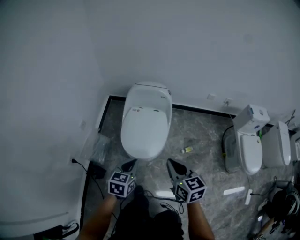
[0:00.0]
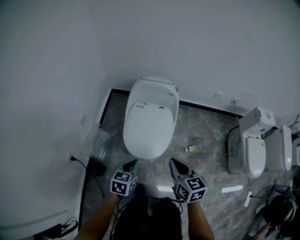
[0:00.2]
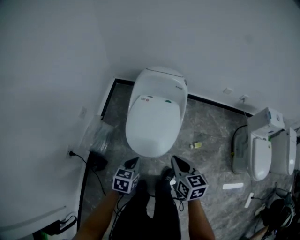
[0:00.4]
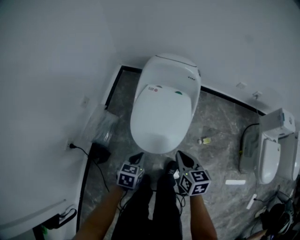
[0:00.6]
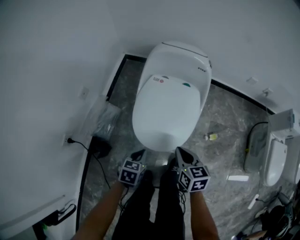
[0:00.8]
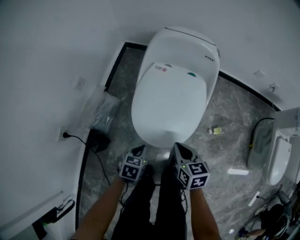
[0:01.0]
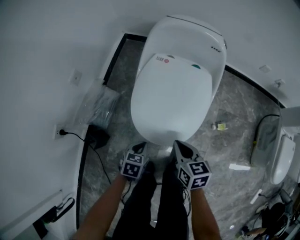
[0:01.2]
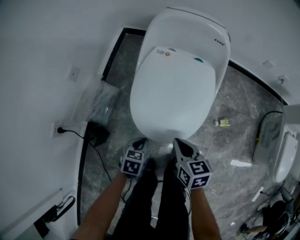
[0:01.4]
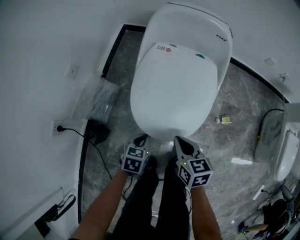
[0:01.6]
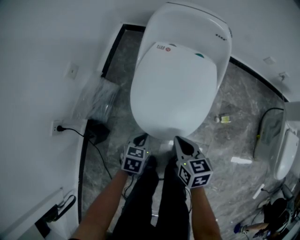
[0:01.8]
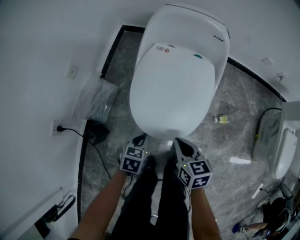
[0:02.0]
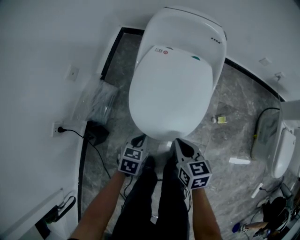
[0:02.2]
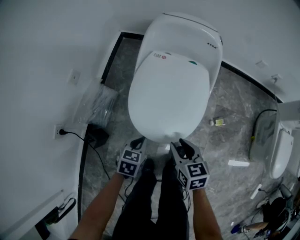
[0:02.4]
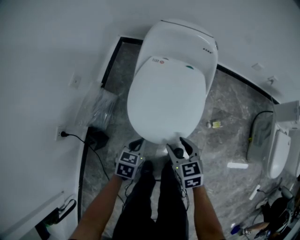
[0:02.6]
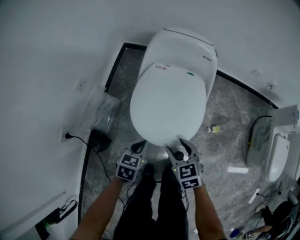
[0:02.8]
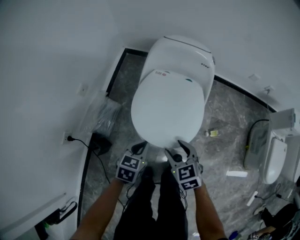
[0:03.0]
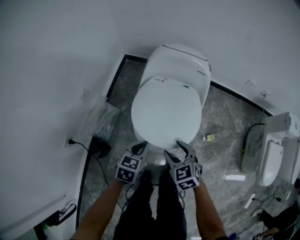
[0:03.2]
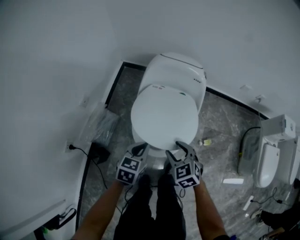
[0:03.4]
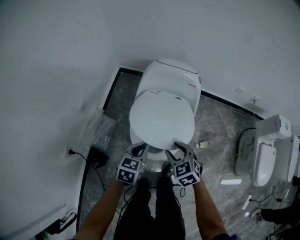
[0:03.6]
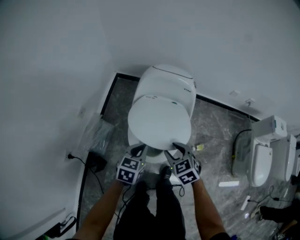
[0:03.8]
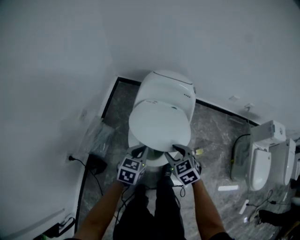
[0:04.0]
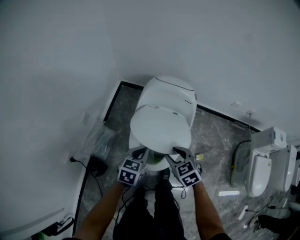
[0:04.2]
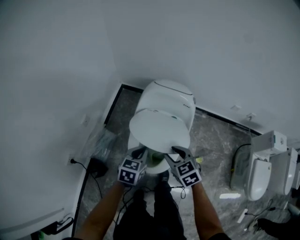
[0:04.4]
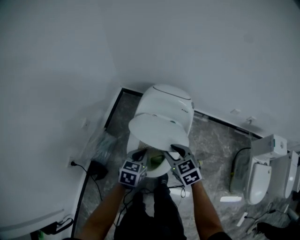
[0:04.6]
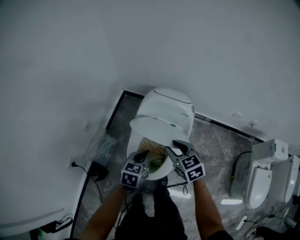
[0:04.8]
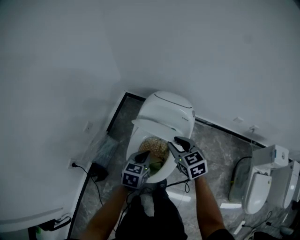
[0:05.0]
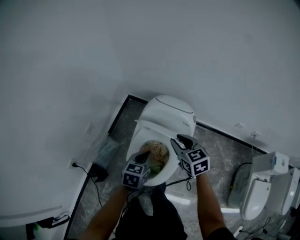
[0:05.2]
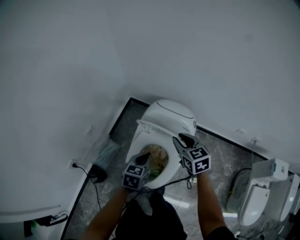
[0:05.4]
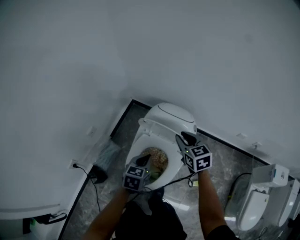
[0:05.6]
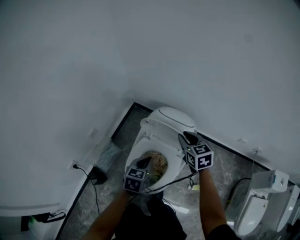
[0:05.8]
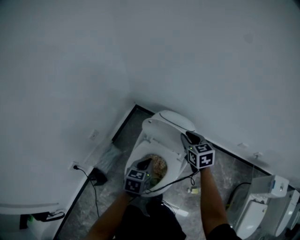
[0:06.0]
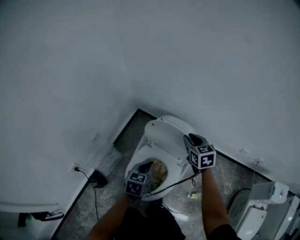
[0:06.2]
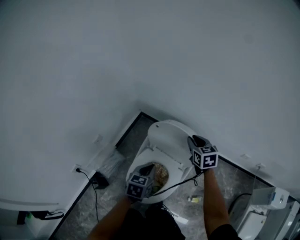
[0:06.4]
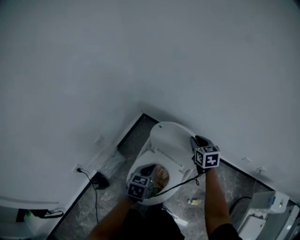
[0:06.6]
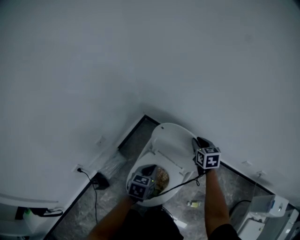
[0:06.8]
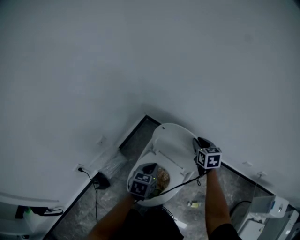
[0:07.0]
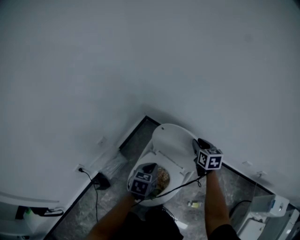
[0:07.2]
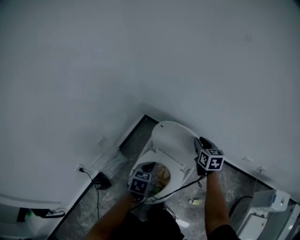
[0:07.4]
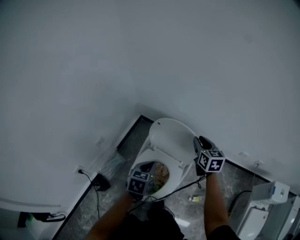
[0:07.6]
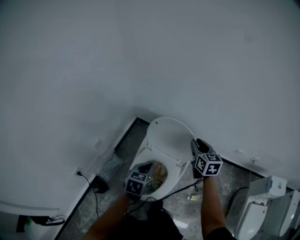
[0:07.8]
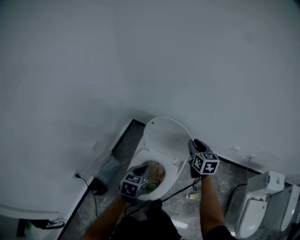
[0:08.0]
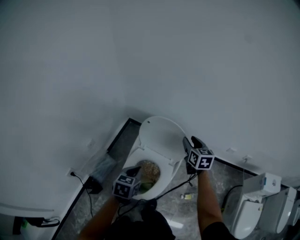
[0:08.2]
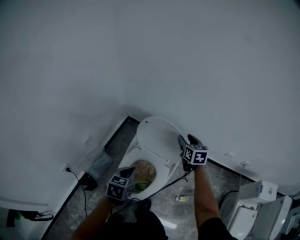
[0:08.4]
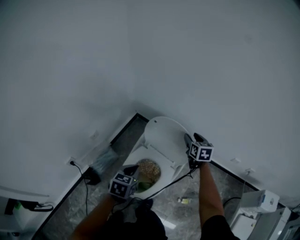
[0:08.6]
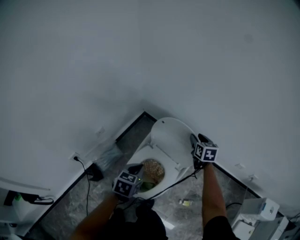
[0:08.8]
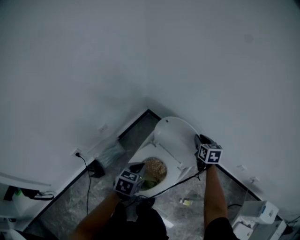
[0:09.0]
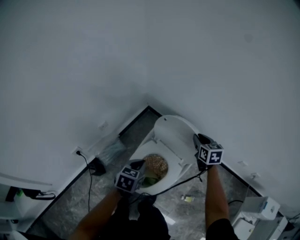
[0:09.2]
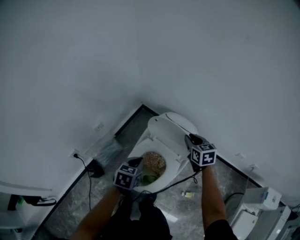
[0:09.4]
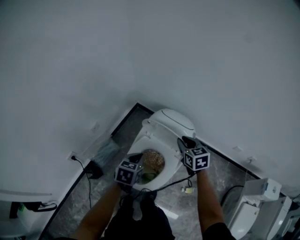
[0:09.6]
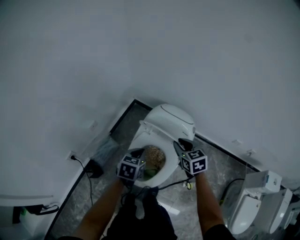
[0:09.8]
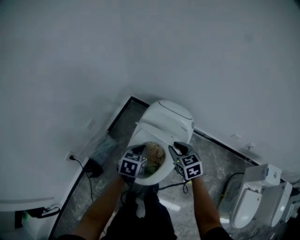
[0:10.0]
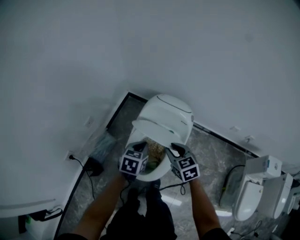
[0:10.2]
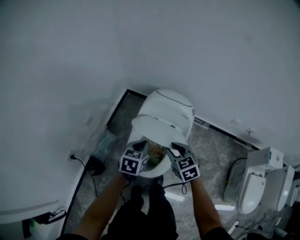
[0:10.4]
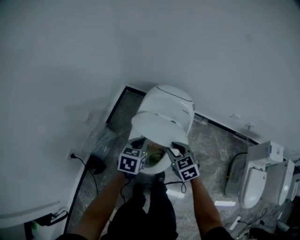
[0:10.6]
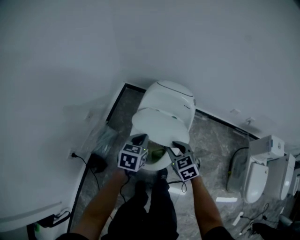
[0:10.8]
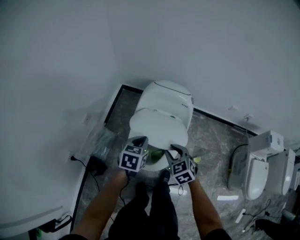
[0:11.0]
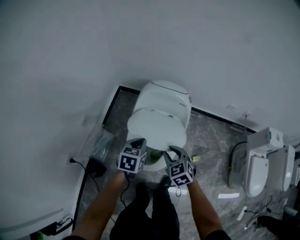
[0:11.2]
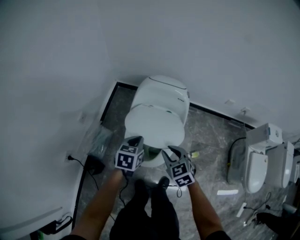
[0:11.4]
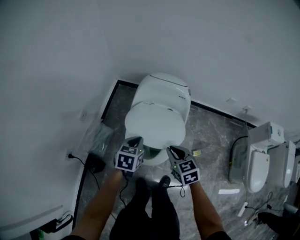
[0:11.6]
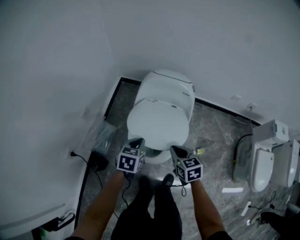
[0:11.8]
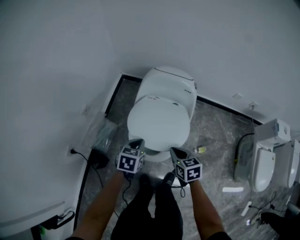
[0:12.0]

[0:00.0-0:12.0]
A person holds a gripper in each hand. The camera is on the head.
0:00.0 to 0:01.6: The grippers both shift downward by approximately 35 cm. The right gripper rotates some 20 degrees. The left gripper rotates roughly 20 degrees.
0:01.6 to 0:03.0: The right gripper is displaced upward by some 10 cm, swivels roughly 30 degrees, and opens. Meanwhile the left gripper is displaced upward by approximately 15 cm.
0:03.0 to 0:04.4: Both grippers travel together upward and forward, about 15 cm.
0:04.4 to 0:06.0: The left gripper moves forward and to the right, about 10 cm. The right gripper travels forward and to the right by about 25 cm.
0:06.0 to 0:07.6: The right gripper shifts some 5 cm to the right.
0:07.6 to 0:09.0: The right gripper changes place by roughly 5 cm, and opens, then closes once more. The left gripper changes place by about 5 cm.
0:09.0 to 0:10.4: The right gripper moves backward and to the left, approximately 30 cm.
0:10.4 to 0:12.0: The right gripper goes approximately 15 cm backward and downward, rotates approximately 20 degrees, and closes up; the left gripper is displaced downward and backward by some 10 cm.

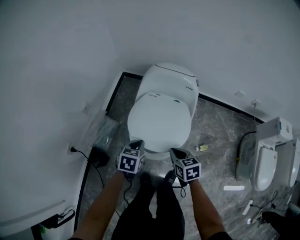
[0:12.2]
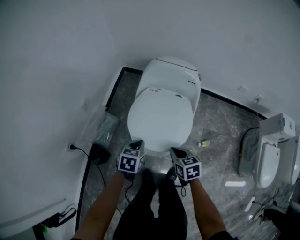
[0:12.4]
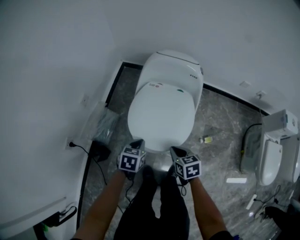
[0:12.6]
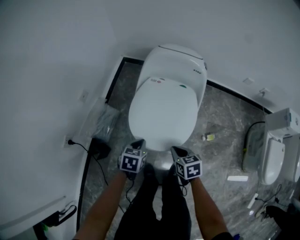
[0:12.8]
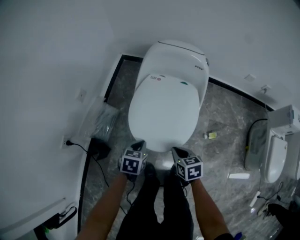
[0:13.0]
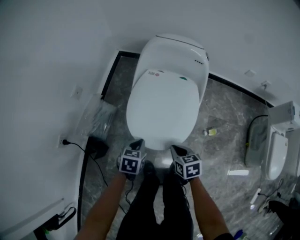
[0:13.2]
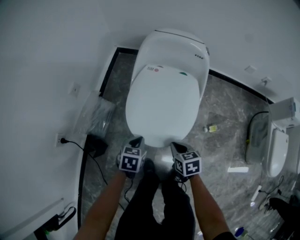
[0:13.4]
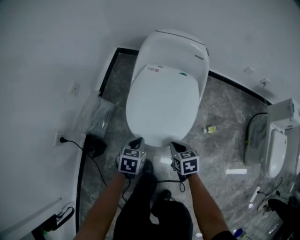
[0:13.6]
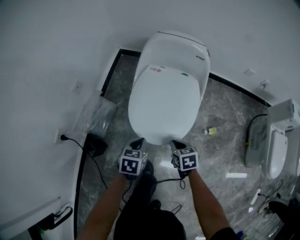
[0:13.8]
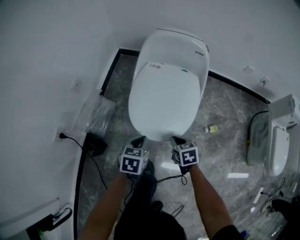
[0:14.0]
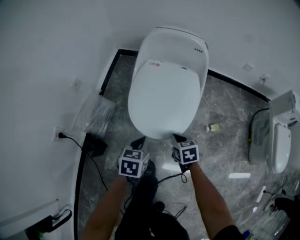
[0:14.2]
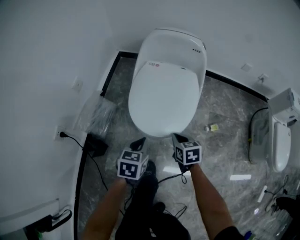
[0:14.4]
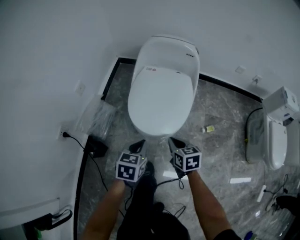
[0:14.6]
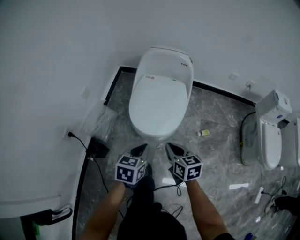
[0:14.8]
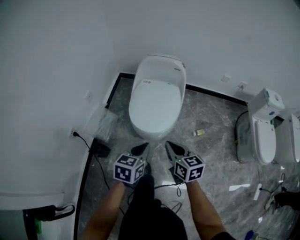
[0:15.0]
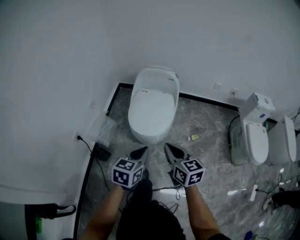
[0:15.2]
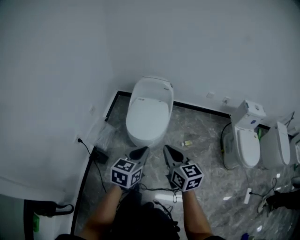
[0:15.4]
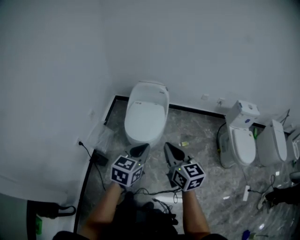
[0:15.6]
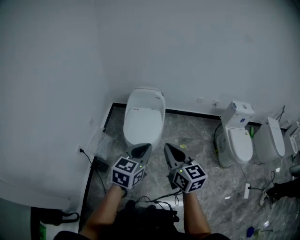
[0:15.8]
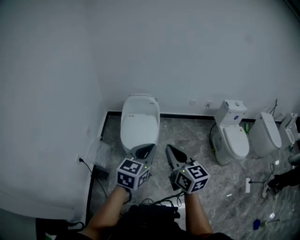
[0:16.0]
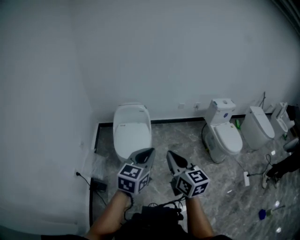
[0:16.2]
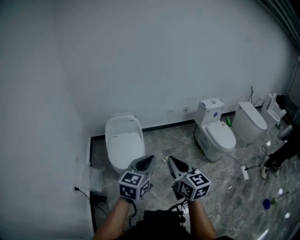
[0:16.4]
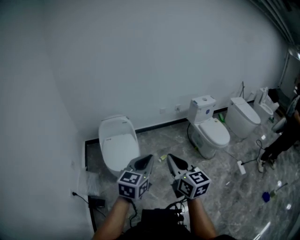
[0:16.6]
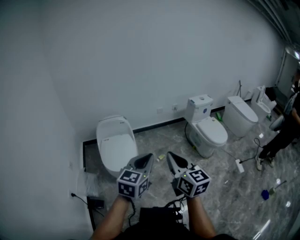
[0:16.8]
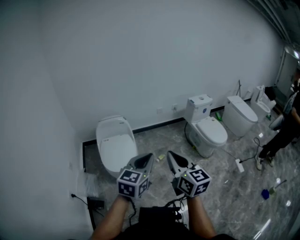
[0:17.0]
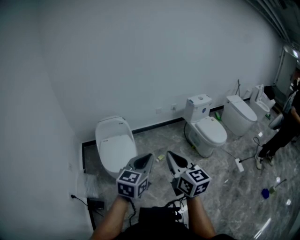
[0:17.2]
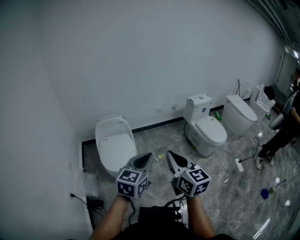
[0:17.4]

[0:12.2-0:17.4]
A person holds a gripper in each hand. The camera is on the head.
0:12.2 to 0:14.0: The left gripper heads downward and backward, covering roughly 15 cm; the right gripper moves downward, approximately 15 cm.
0:14.0 to 0:15.6: The two grippers go approximately 50 cm upward and backward. The left gripper rotates some 30 degrees. The right gripper tilts its fingers roughly 50 degrees upward.
0:15.6 to 0:17.4: The right gripper is displaced to the right and upward by approximately 15 cm, and turns by approximately 30 degrees, while the left gripper heads upward and to the right, covering roughly 15 cm, and rotates some 30 degrees.

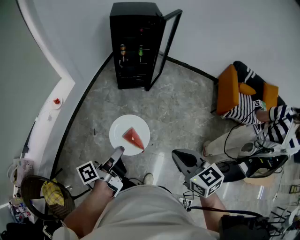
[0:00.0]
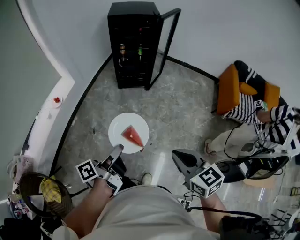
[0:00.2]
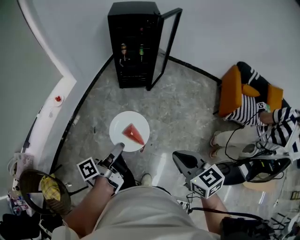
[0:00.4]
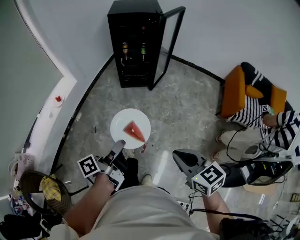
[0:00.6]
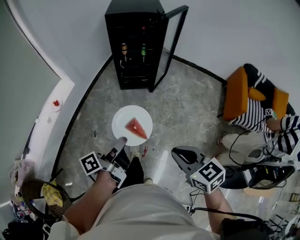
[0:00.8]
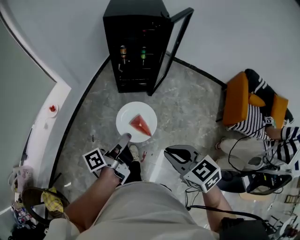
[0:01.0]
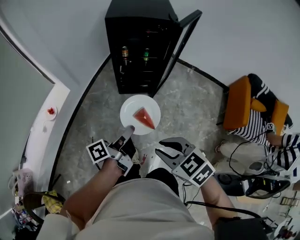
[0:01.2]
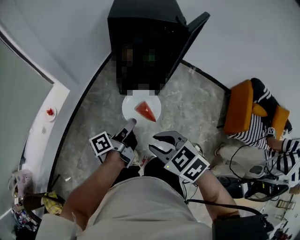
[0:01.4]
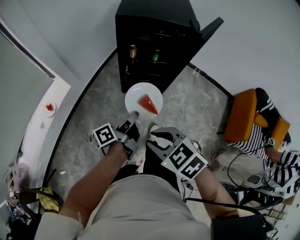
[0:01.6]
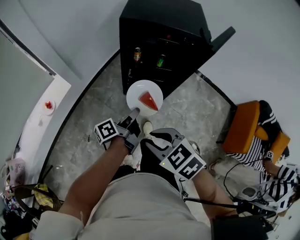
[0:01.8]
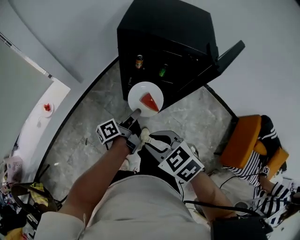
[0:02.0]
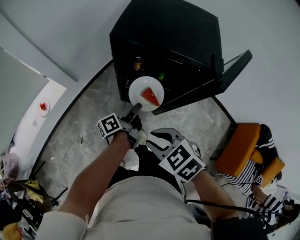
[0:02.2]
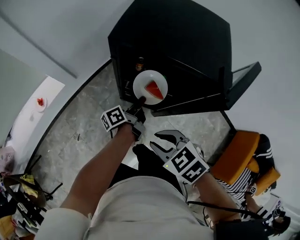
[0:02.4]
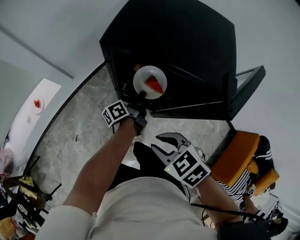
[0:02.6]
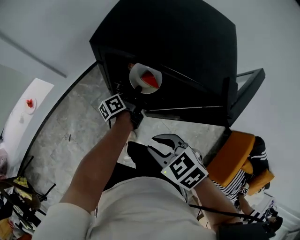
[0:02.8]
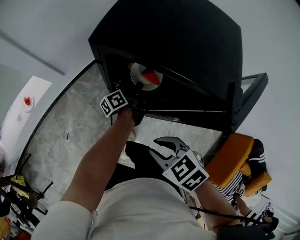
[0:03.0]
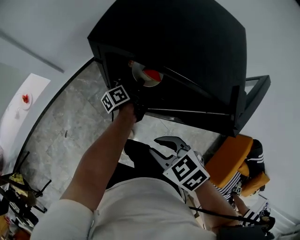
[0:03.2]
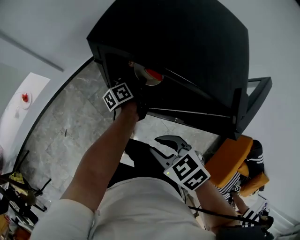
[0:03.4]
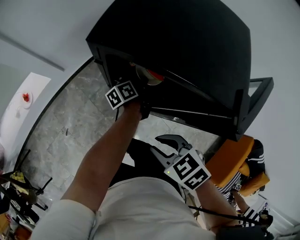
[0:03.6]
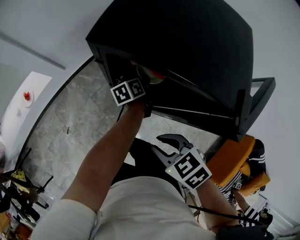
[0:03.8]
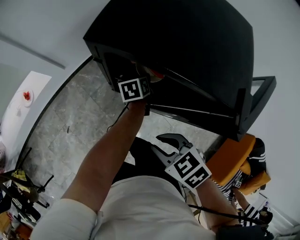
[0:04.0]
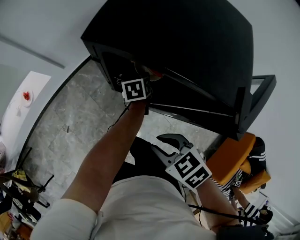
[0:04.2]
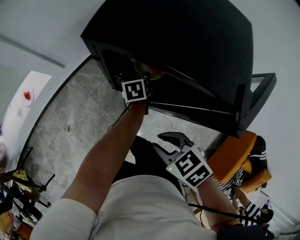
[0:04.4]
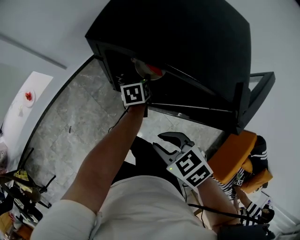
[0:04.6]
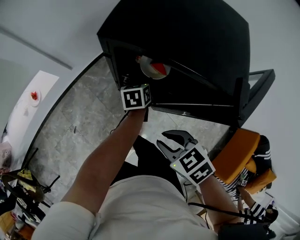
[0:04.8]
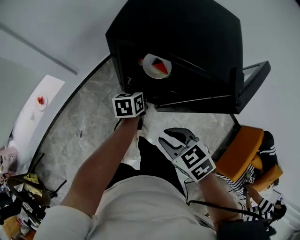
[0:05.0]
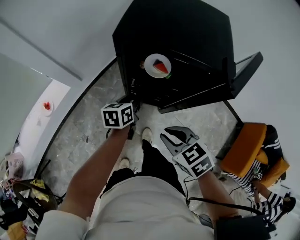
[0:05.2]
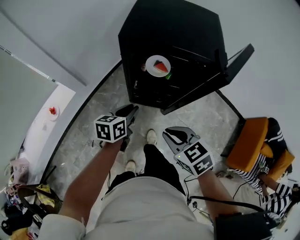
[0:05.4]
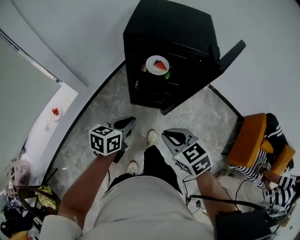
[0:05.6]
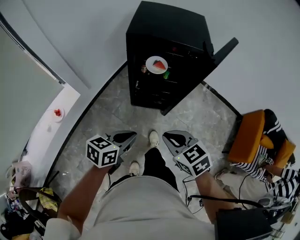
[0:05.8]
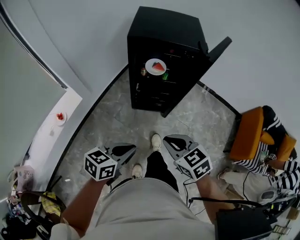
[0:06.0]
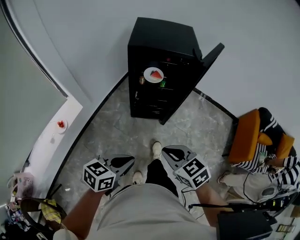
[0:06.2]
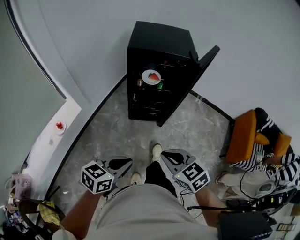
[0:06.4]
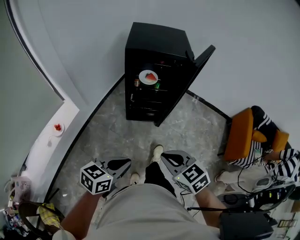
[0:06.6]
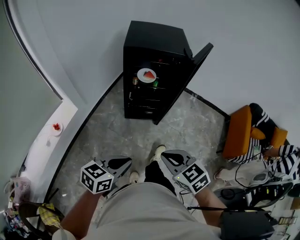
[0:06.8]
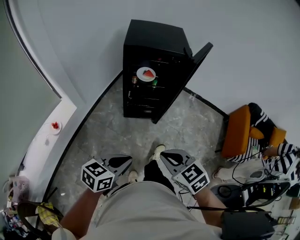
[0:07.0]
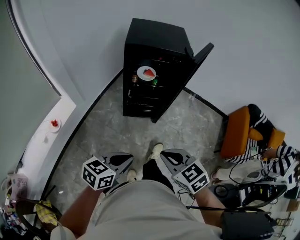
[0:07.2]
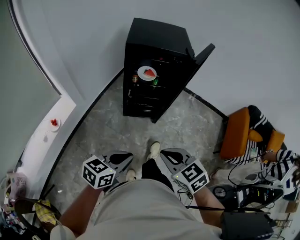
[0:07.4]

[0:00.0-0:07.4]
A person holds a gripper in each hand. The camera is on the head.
0:00.0 to 0:01.4: Both grippers move forward, some 30 cm. The right gripper changes its angle by some 30 degrees, and opens.
0:01.4 to 0:03.0: The right gripper heads forward, to the right and downward, covering some 35 cm, while the left gripper goes approximately 50 cm forward, downward and to the right, and changes its angle by roughly 20 degrees.
0:03.0 to 0:04.4: The left gripper points its fingers approximately 40 degrees further downward, and opens up.
0:04.4 to 0:06.0: The left gripper shifts by roughly 50 cm, rotates roughly 50 degrees, and closes up; the right gripper moves approximately 25 cm, swivels about 30 degrees, and closes up.
0:06.0 to 0:07.4: Both grippers travel together backward, roughly 5 cm.
